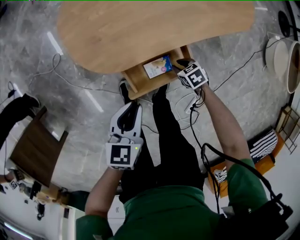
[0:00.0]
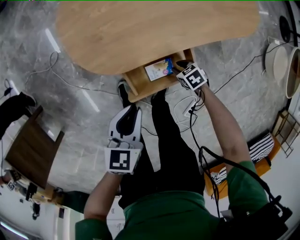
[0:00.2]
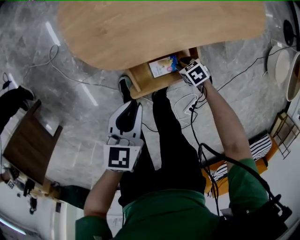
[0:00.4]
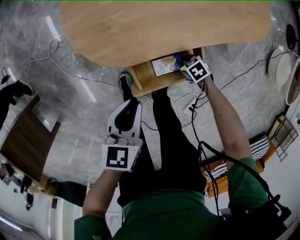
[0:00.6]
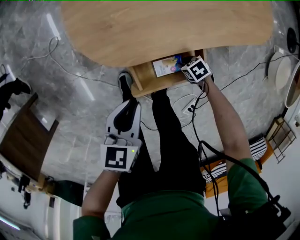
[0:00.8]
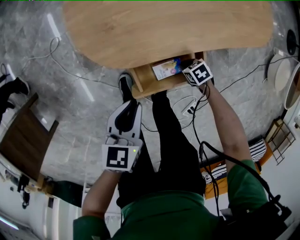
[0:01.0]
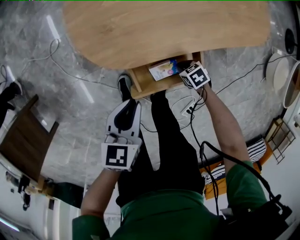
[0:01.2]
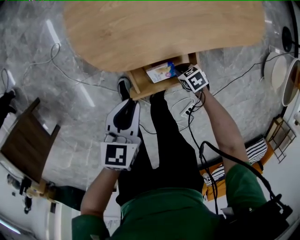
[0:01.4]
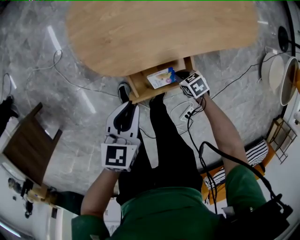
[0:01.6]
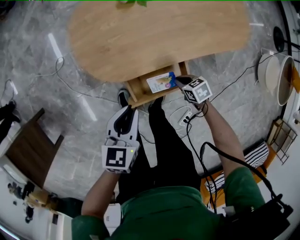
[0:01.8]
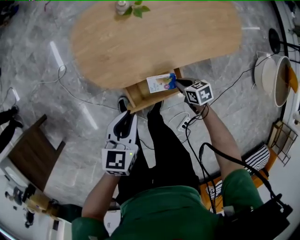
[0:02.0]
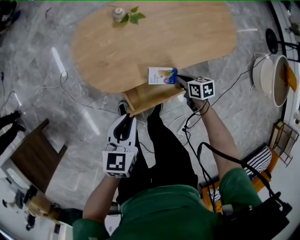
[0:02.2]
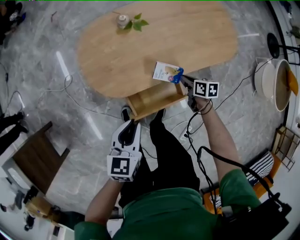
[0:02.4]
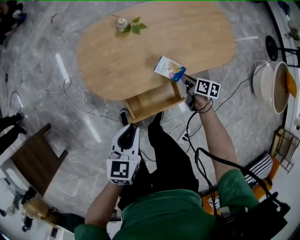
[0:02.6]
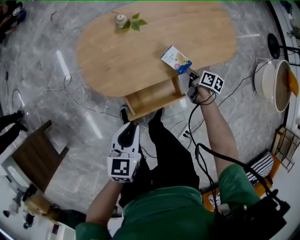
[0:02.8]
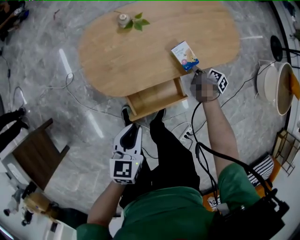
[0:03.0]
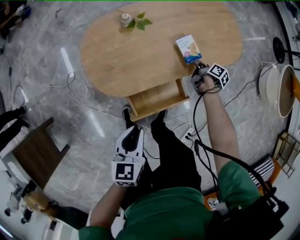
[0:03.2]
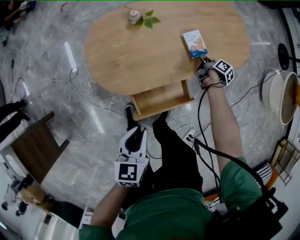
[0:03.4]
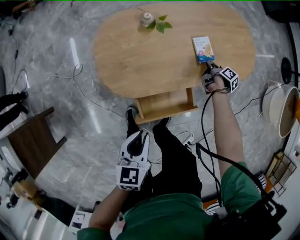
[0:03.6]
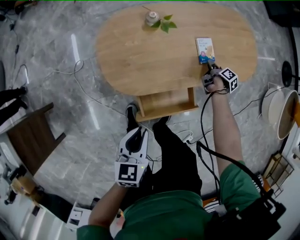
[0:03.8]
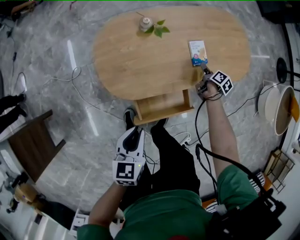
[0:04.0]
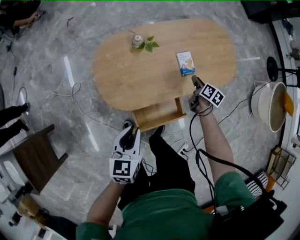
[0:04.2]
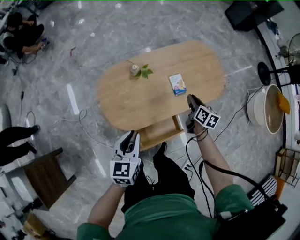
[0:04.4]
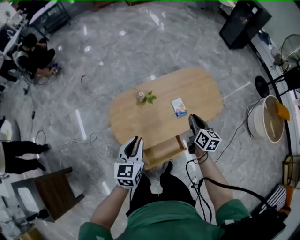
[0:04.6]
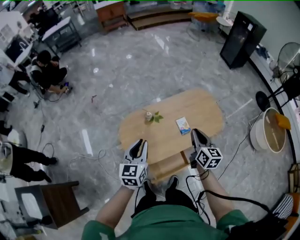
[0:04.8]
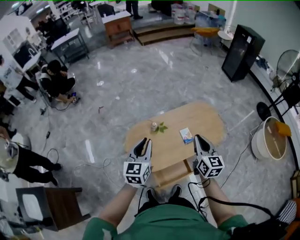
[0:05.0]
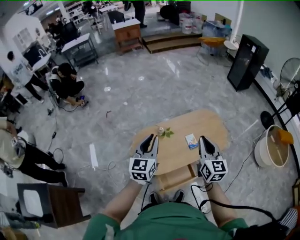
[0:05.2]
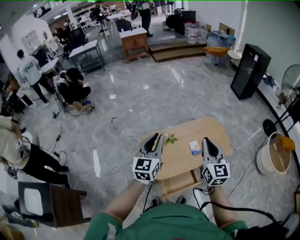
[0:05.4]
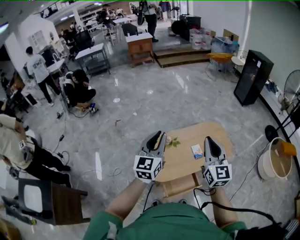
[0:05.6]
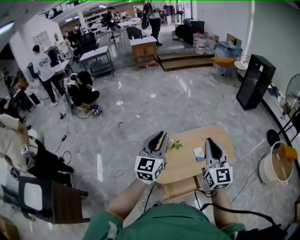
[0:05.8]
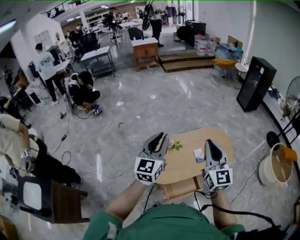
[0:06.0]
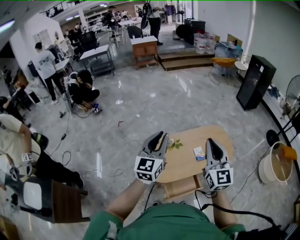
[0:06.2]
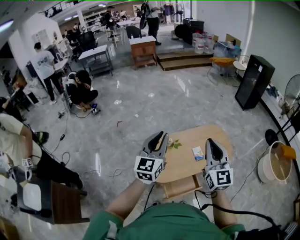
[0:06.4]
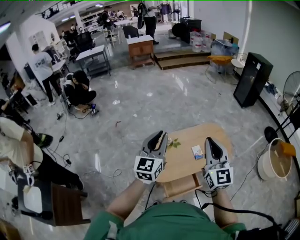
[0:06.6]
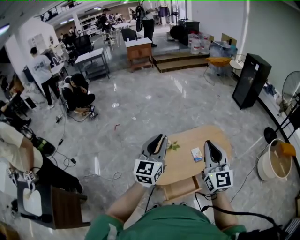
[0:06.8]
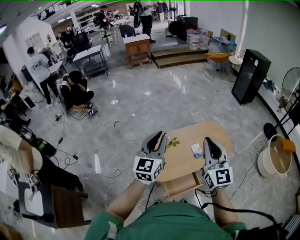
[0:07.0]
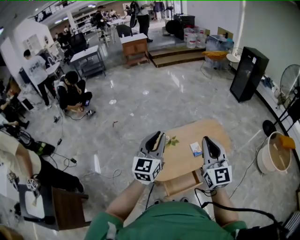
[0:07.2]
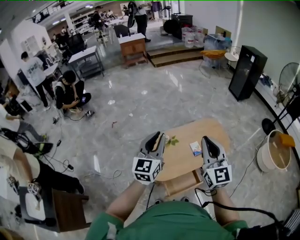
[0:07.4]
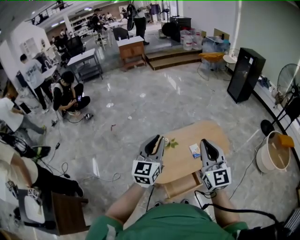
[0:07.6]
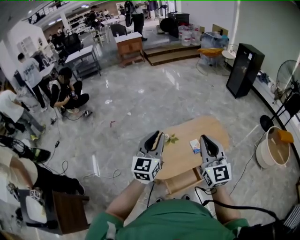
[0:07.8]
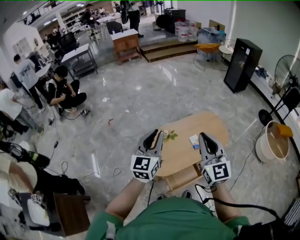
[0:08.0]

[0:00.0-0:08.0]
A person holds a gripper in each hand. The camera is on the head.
0:00.0 to 0:01.6: The right gripper travels downward and back again, about 5 cm each way, and closes.
0:01.6 to 0:03.2: The right gripper shifts by about 25 cm, and twists about 80 degrees clockwise, seen from behind. The left gripper goes some 5 cm upward.
0:03.2 to 0:04.8: The right gripper is displaced upward by about 50 cm, twists some 50 degrees counterclockwise, seen from behind, and opens and closes again, while the left gripper moves upward and forward, roughly 30 cm, and changes its angle by some 30 degrees.
0:04.8 to 0:06.4: The left gripper is displaced upward by roughly 20 cm, and swivels approximately 20 degrees; the right gripper shifts about 30 cm upward and backward, and changes its angle by approximately 40 degrees.
0:06.4 to 0:08.0: The grippers make only small movements.

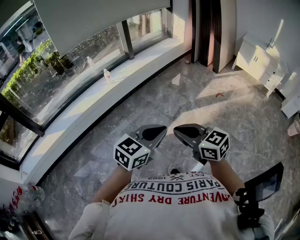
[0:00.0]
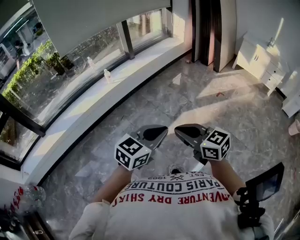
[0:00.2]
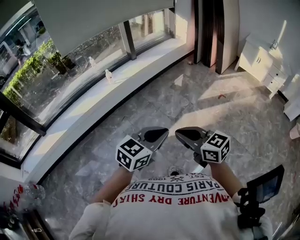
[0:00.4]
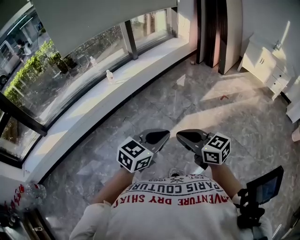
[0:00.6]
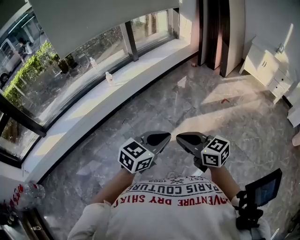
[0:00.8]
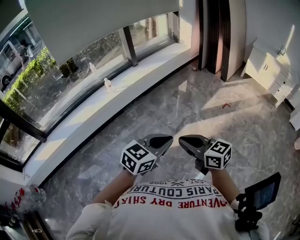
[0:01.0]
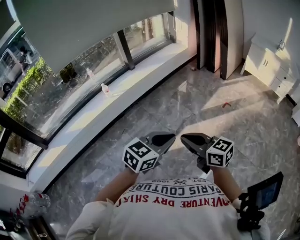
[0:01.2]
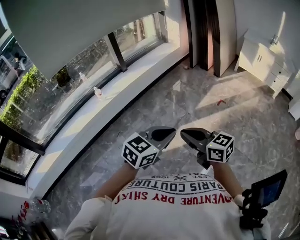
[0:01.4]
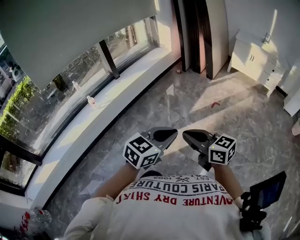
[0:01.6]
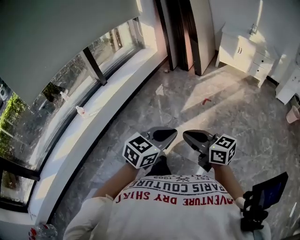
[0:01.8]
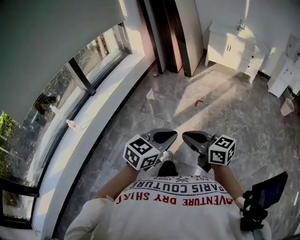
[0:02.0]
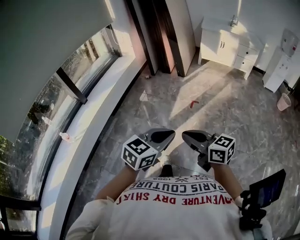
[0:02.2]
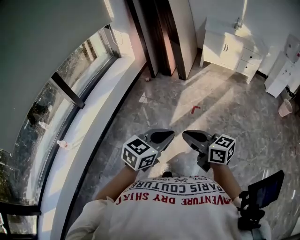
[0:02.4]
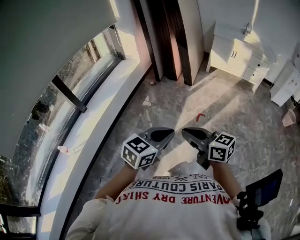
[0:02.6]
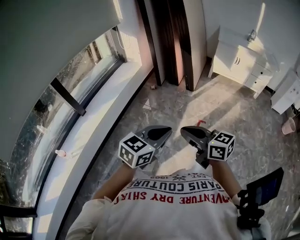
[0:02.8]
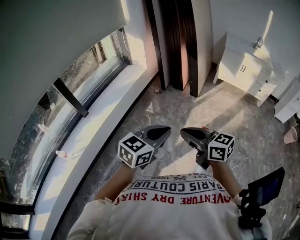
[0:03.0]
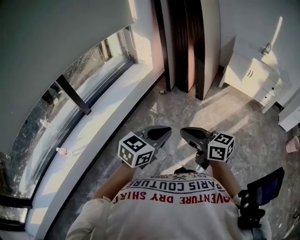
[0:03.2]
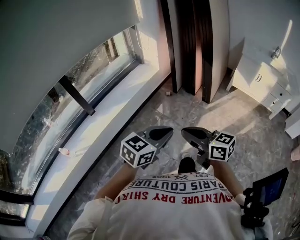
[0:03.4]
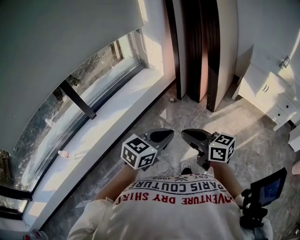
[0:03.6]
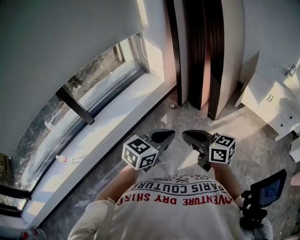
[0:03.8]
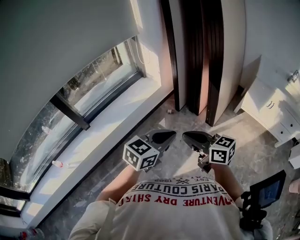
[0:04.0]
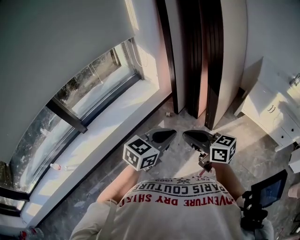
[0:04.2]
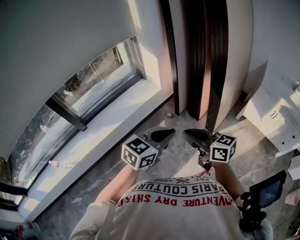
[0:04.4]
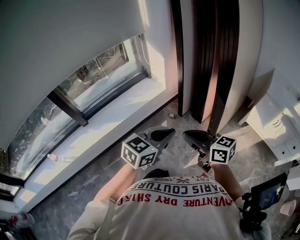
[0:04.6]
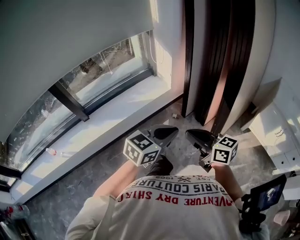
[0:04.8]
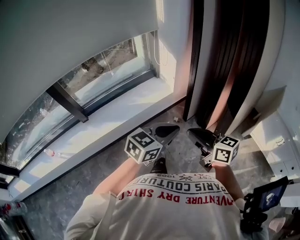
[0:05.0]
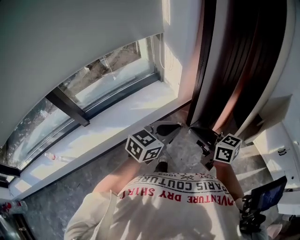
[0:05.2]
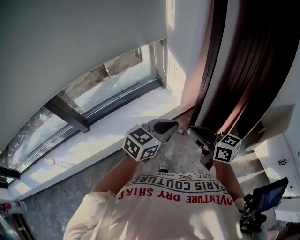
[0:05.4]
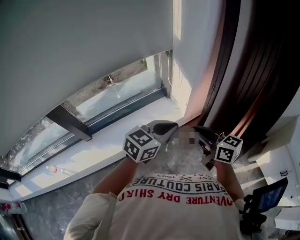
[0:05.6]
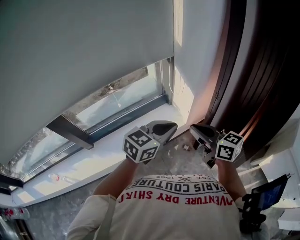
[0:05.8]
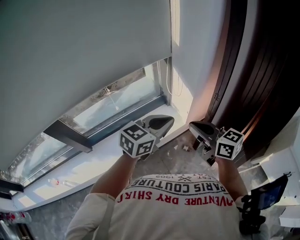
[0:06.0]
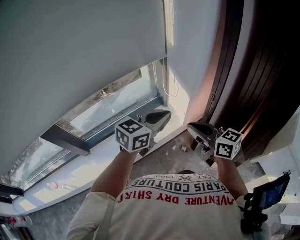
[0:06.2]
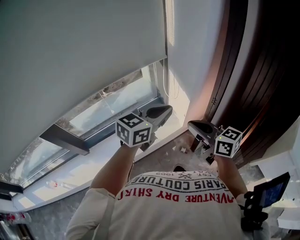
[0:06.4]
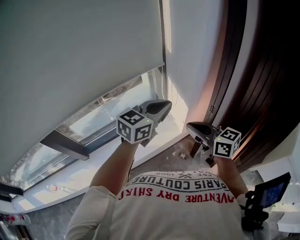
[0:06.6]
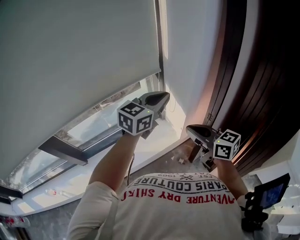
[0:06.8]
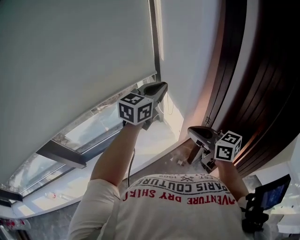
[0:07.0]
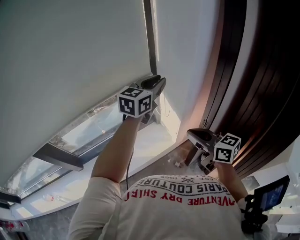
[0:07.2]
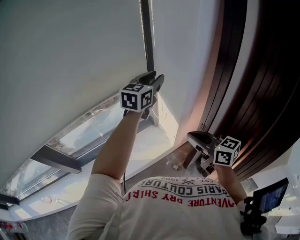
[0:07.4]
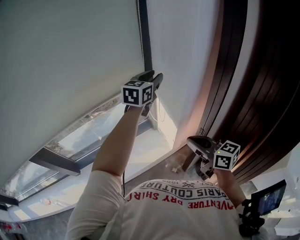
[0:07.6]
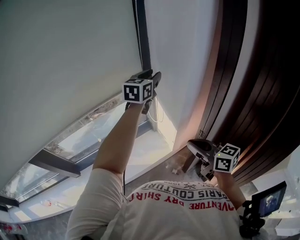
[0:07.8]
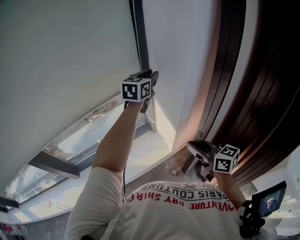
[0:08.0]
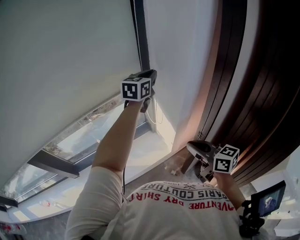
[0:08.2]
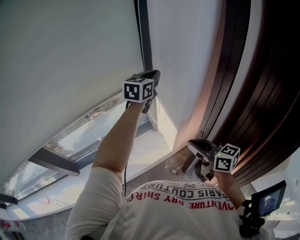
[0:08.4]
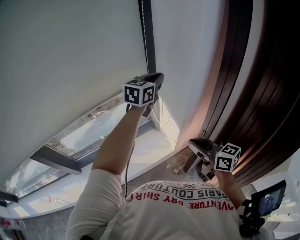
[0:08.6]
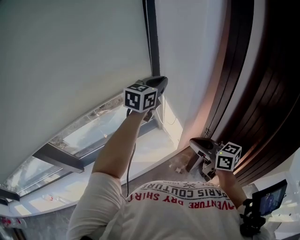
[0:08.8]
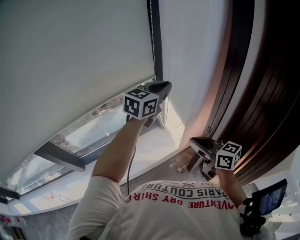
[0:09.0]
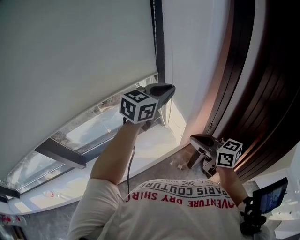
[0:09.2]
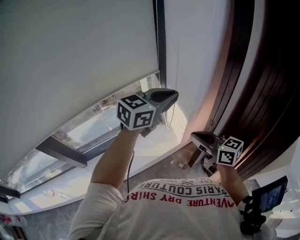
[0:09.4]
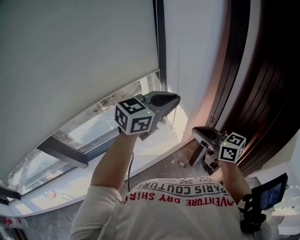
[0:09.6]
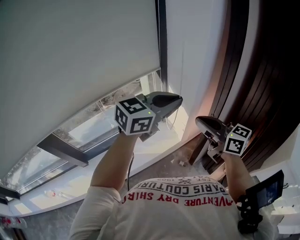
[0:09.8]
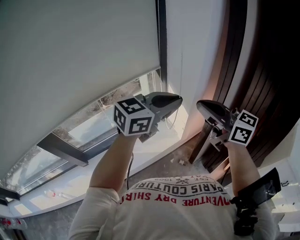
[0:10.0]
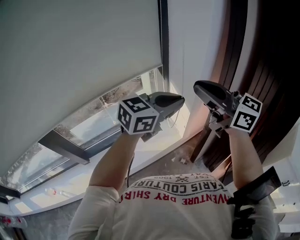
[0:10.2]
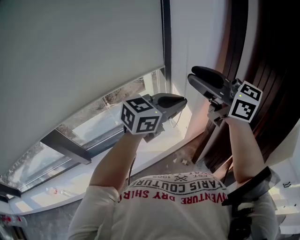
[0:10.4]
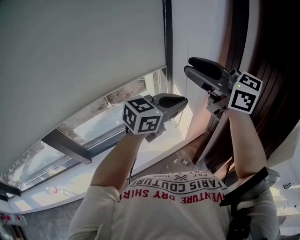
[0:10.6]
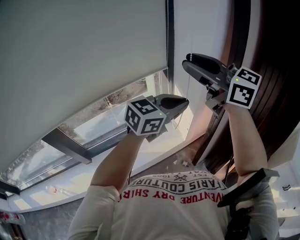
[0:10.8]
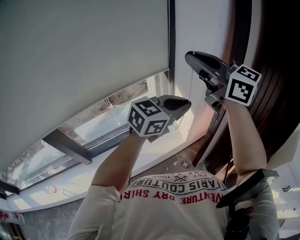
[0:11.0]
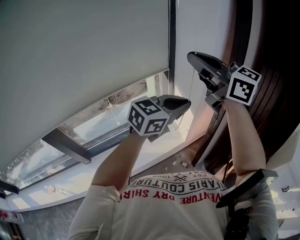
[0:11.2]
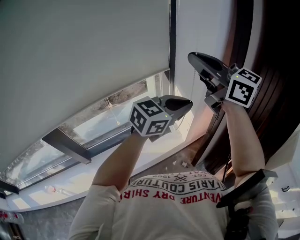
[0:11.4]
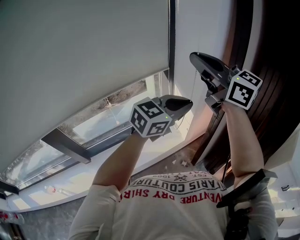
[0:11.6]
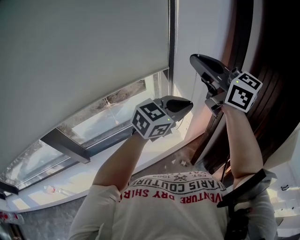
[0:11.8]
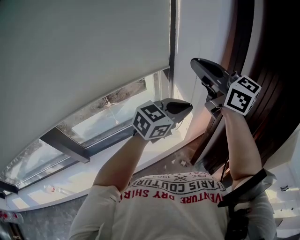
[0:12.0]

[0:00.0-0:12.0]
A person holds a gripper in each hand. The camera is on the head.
0:00.0 to 0:01.6: Both grippers travel together to the right and forward, some 25 cm.
0:01.6 to 0:03.0: Both grippers are carried forward, approximately 50 cm.
0:03.0 to 0:04.4: The pair of grippers is taken forward, about 40 cm.
0:04.4 to 0:06.0: The pair of grippers is taken forward, roughly 40 cm.
0:06.0 to 0:07.6: The left gripper moves forward, about 35 cm, swivels roughly 20 degrees, and opens. Meanwhile the right gripper is displaced forward and to the right by some 15 cm.
0:07.6 to 0:09.0: The left gripper moves backward, roughly 10 cm, and closes its fingers.
0:09.0 to 0:10.4: The left gripper shifts about 20 cm backward. Meanwhile the right gripper shifts some 25 cm upward, changes its angle by some 30 degrees, and opens.
0:10.4 to 0:12.0: The right gripper closes.

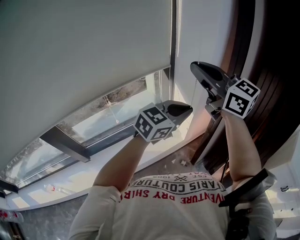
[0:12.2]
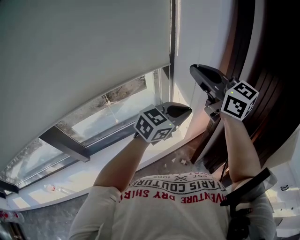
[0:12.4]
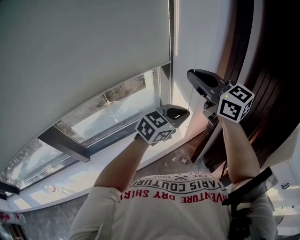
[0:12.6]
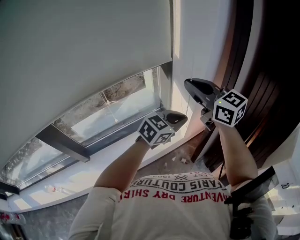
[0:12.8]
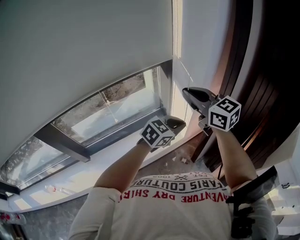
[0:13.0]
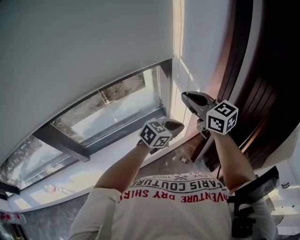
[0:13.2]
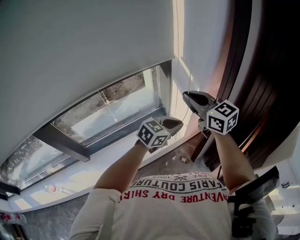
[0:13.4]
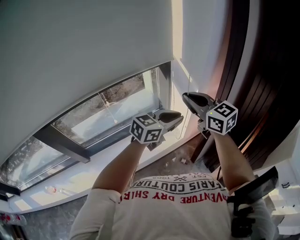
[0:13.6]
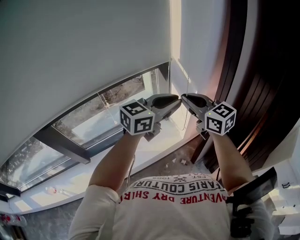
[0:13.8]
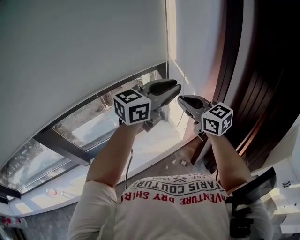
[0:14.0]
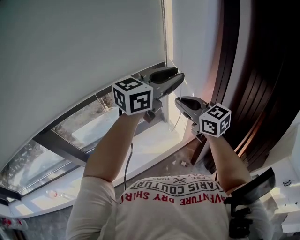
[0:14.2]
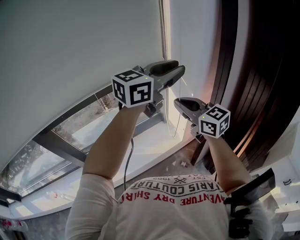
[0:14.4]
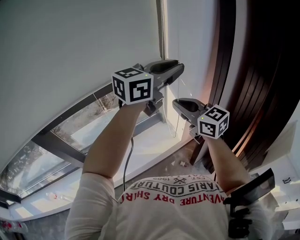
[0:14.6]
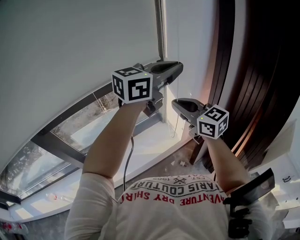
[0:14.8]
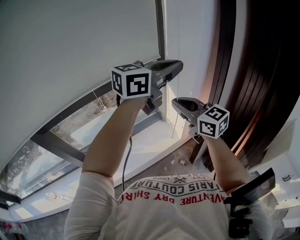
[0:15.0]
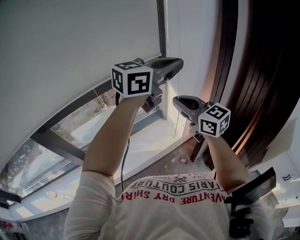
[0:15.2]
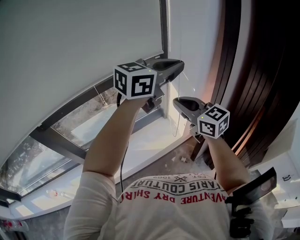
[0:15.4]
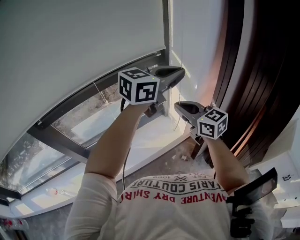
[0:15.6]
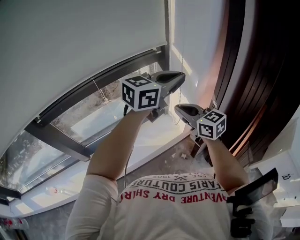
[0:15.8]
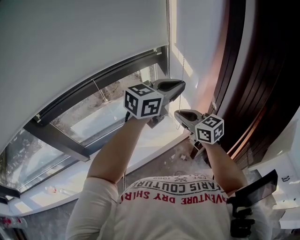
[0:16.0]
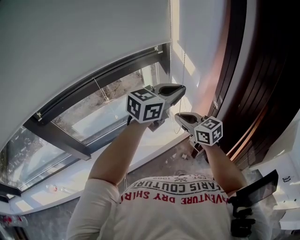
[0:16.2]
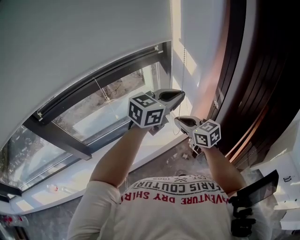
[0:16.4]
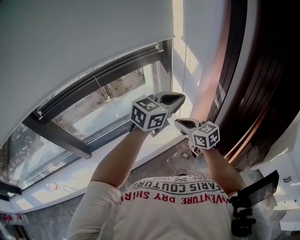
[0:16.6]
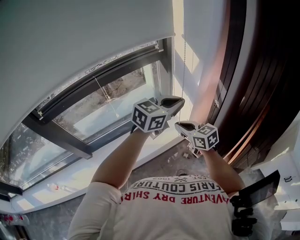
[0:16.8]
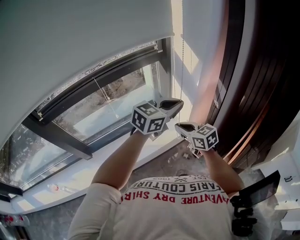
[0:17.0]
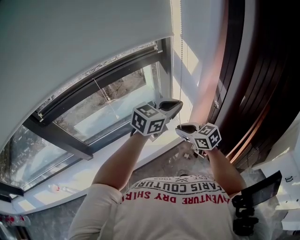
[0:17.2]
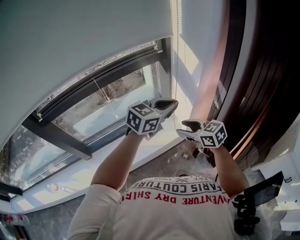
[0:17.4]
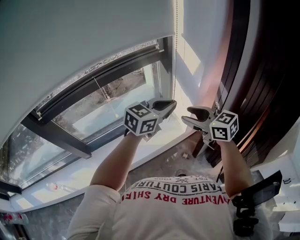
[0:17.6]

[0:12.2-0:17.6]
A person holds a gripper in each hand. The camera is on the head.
0:12.2 to 0:13.6: The left gripper shifts approximately 5 cm downward. Meanwhile the right gripper travels downward by roughly 15 cm.
0:13.6 to 0:15.0: The left gripper shifts about 25 cm upward. The right gripper changes place by about 5 cm.
0:15.0 to 0:16.2: The grippers both shift downward by about 15 cm.
0:16.2 to 0:17.6: The left gripper heads downward, covering some 10 cm. Meanwhile the right gripper opens.
